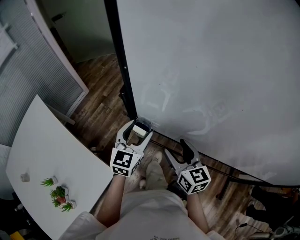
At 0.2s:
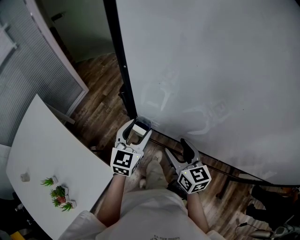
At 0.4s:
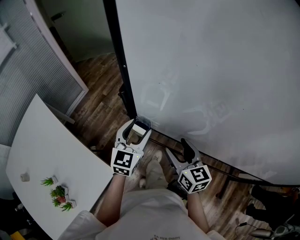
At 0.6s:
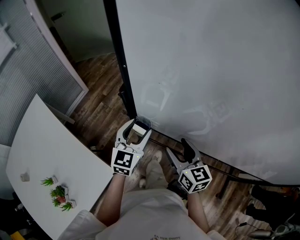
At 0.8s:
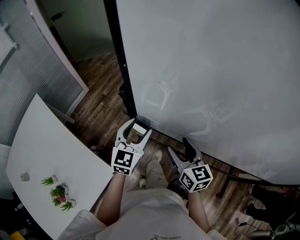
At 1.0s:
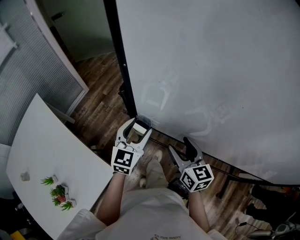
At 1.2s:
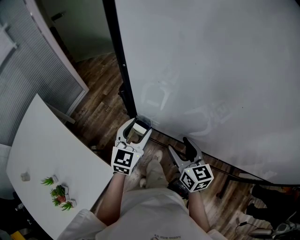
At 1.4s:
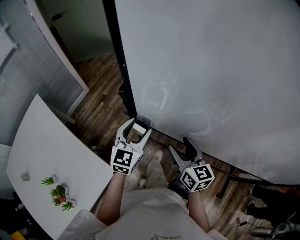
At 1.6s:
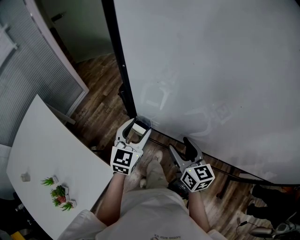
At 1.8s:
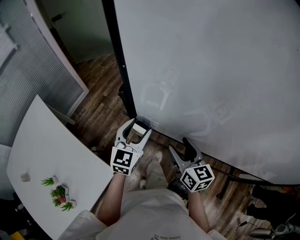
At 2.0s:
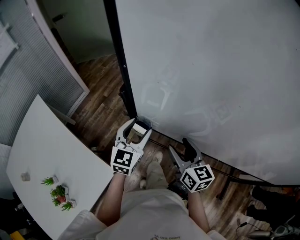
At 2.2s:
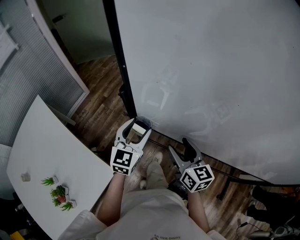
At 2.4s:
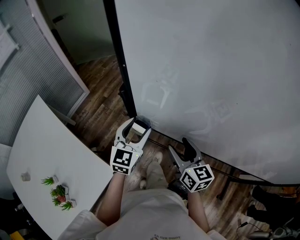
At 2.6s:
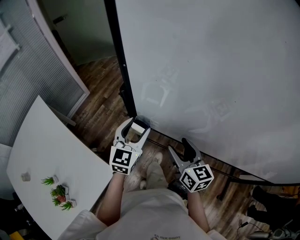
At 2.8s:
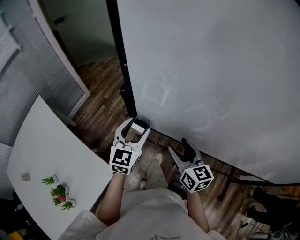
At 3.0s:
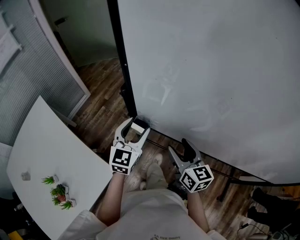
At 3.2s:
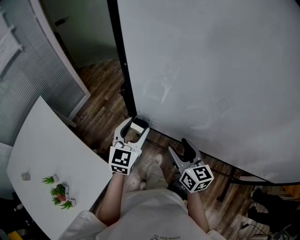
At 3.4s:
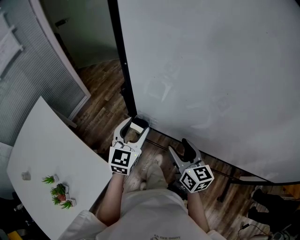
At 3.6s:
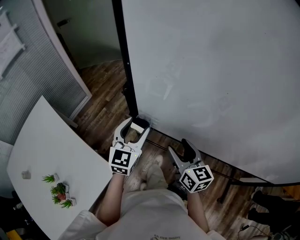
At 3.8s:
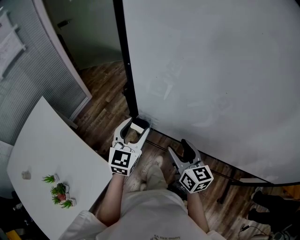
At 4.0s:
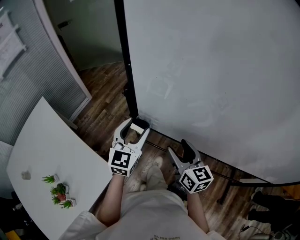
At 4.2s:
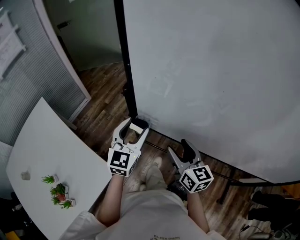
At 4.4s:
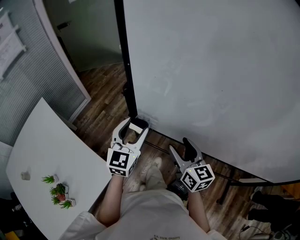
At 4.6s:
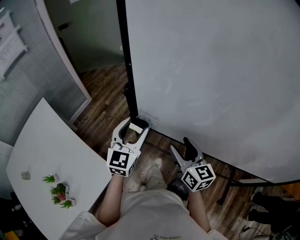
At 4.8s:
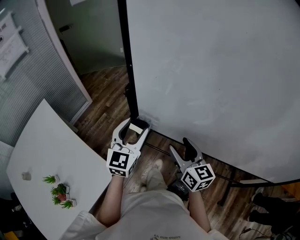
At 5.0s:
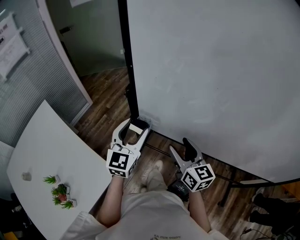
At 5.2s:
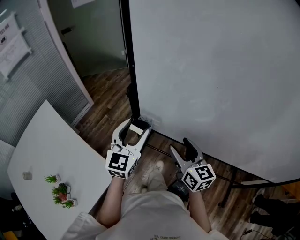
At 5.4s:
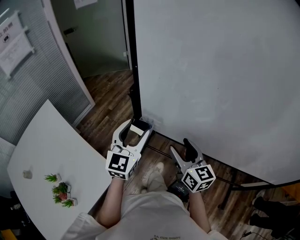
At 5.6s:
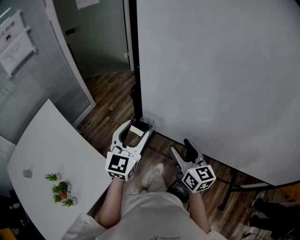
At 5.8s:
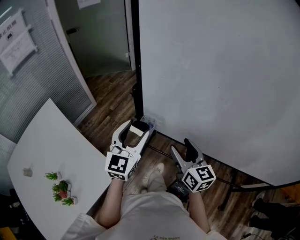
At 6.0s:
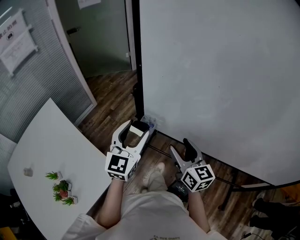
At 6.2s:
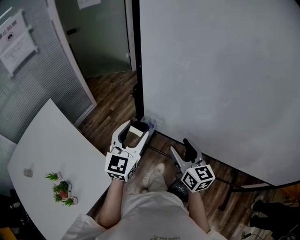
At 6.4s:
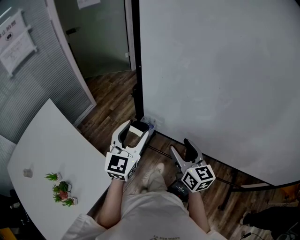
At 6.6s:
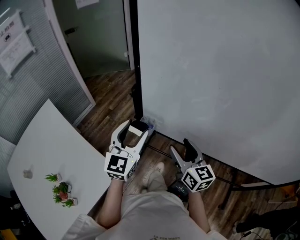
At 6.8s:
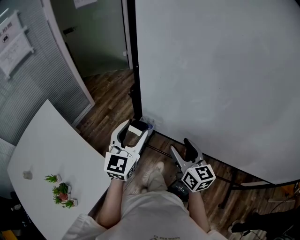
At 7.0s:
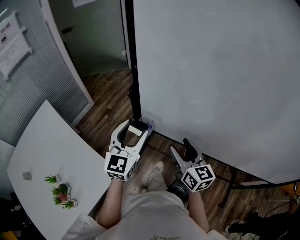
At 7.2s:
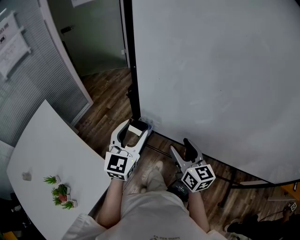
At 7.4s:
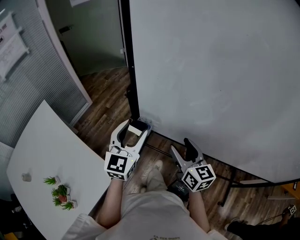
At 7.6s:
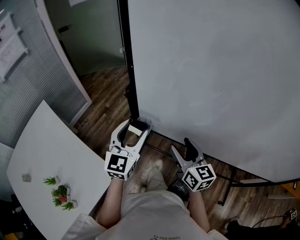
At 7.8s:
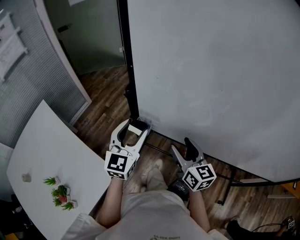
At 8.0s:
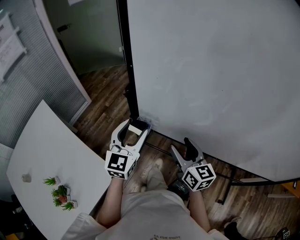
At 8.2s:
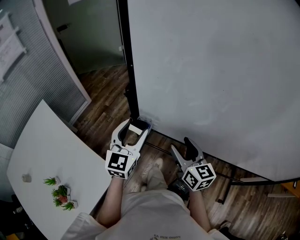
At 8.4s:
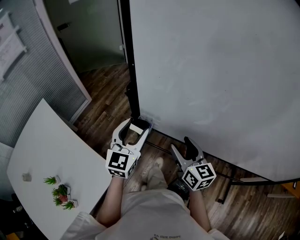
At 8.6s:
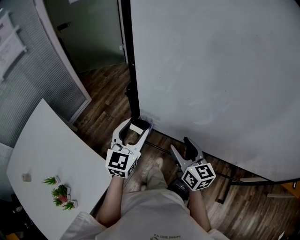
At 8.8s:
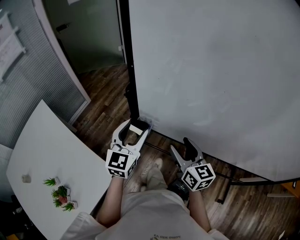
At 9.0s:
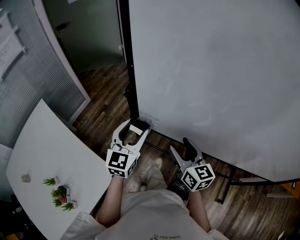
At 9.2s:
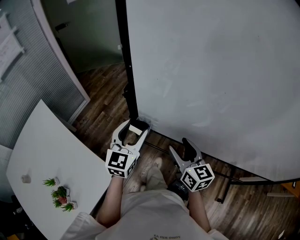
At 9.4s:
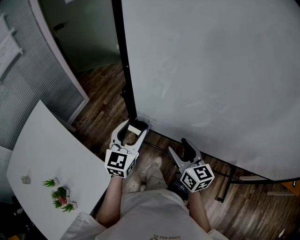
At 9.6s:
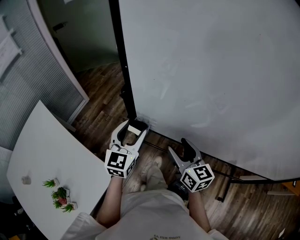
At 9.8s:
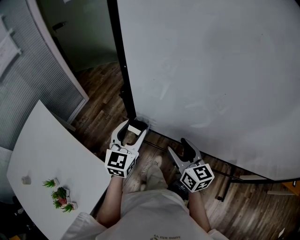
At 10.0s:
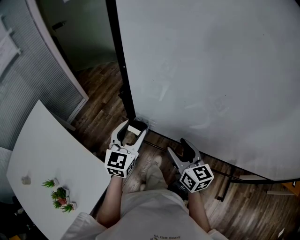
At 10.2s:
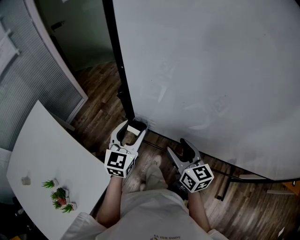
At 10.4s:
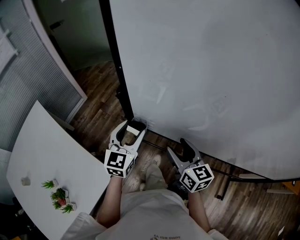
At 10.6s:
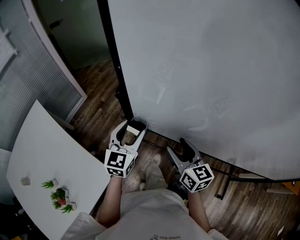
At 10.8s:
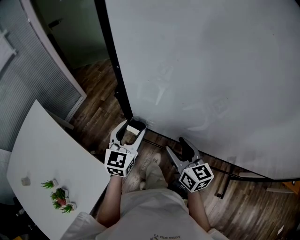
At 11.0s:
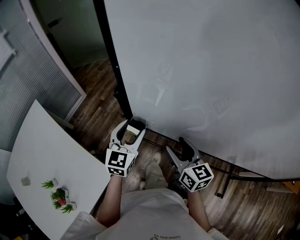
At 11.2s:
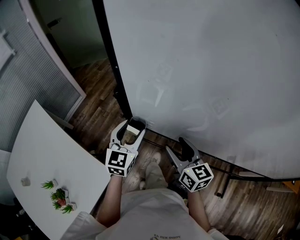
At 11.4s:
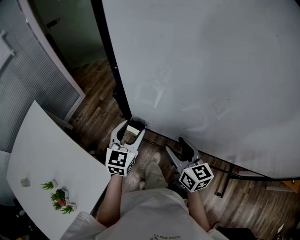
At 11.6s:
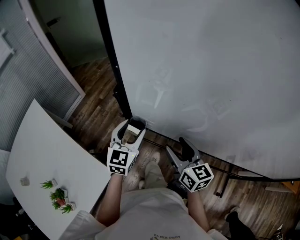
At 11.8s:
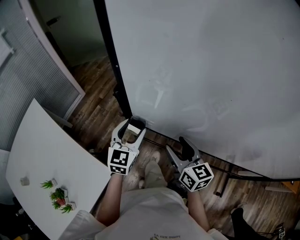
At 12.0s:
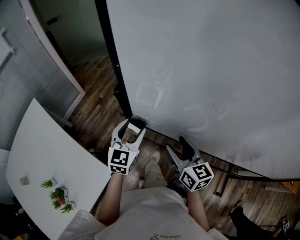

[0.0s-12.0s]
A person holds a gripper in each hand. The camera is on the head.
0.0s to 3.0s: There are only small adjustments of the grippers.
3.0s to 4.4s: The grippers make only small movements.
4.4s to 6.0s: The left gripper shifts by about 5 cm.
6.0s to 7.6s: The grippers stay close to where they were, moving slightly.
7.6s to 9.0s: The grippers move only a little.
9.0s to 10.4s: There are only small adjustments of the grippers.
10.4s to 12.0s: The grippers make only small movements.

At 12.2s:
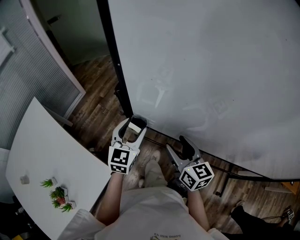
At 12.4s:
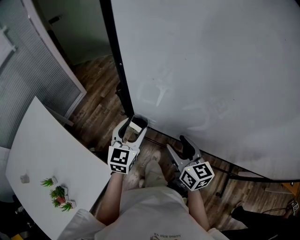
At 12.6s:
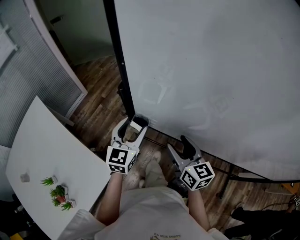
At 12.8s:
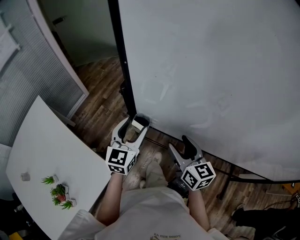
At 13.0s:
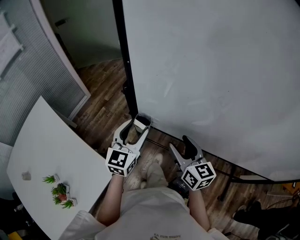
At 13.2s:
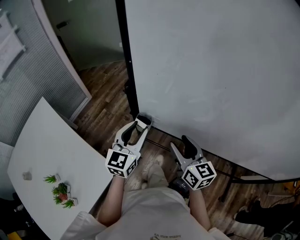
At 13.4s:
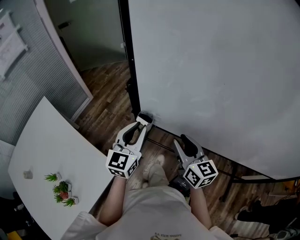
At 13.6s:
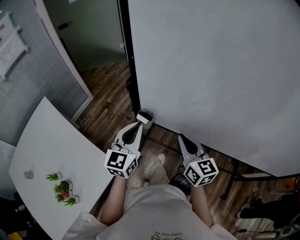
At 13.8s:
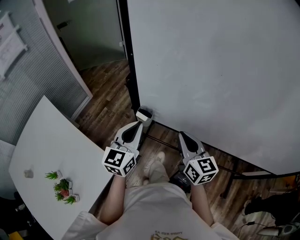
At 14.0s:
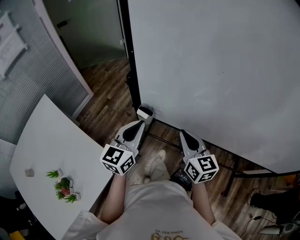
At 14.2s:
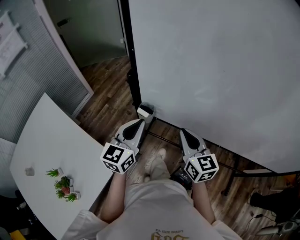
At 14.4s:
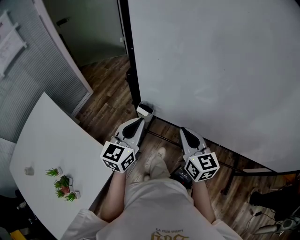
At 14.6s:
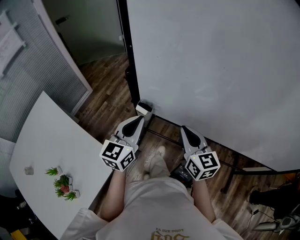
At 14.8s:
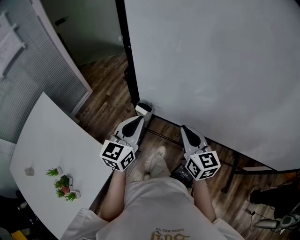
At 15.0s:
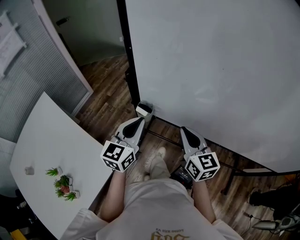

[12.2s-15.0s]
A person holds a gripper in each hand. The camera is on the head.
12.2s to 13.6s: The left gripper is displaced upward and backward by some 10 cm, and closes up, while the right gripper shifts by some 5 cm, and closes its fingers.
13.6s to 15.0s: There are only small adjustments of the grippers.

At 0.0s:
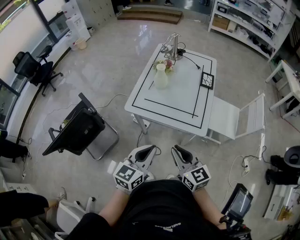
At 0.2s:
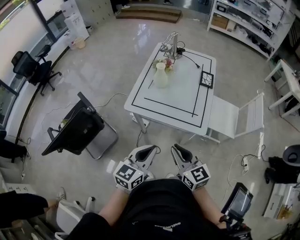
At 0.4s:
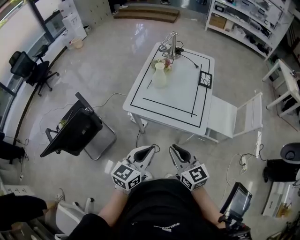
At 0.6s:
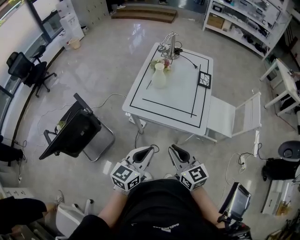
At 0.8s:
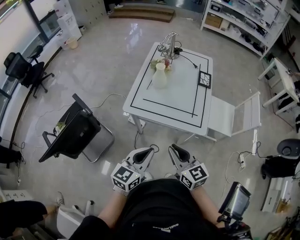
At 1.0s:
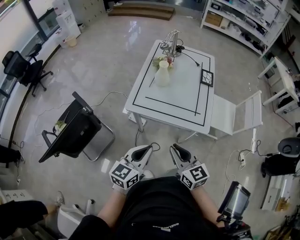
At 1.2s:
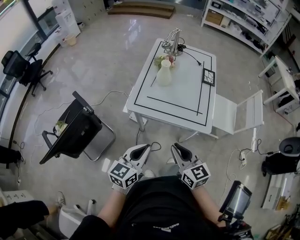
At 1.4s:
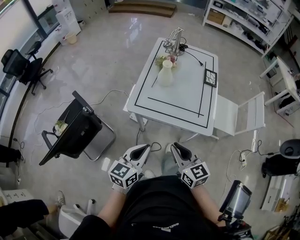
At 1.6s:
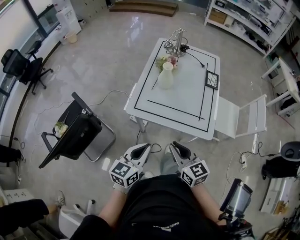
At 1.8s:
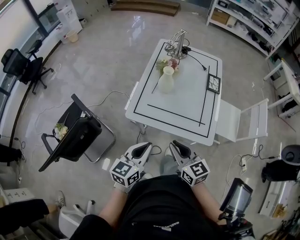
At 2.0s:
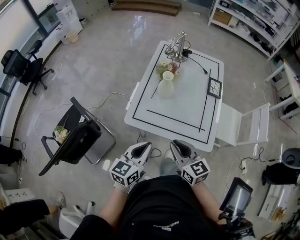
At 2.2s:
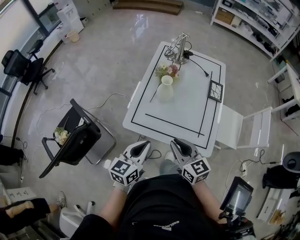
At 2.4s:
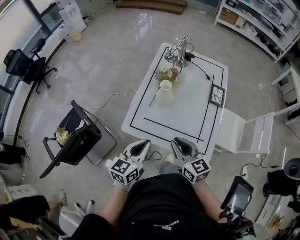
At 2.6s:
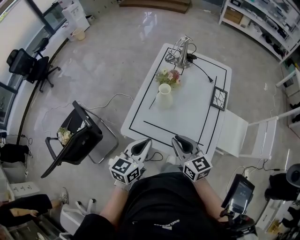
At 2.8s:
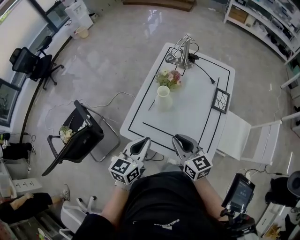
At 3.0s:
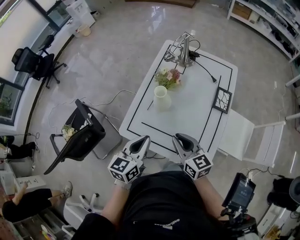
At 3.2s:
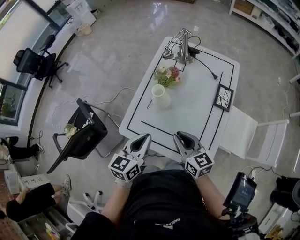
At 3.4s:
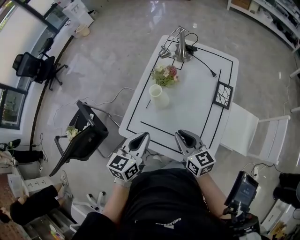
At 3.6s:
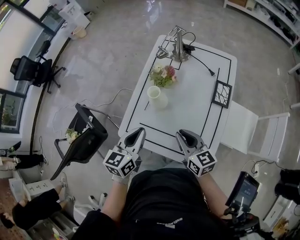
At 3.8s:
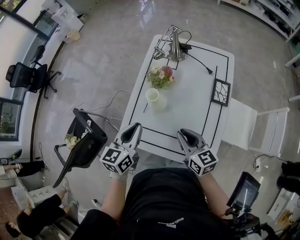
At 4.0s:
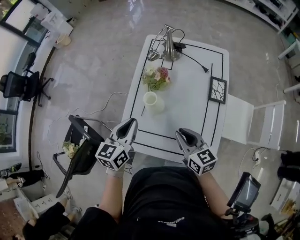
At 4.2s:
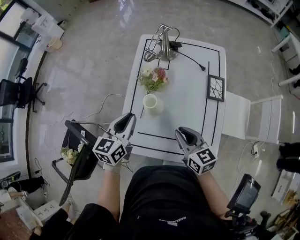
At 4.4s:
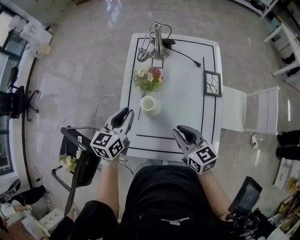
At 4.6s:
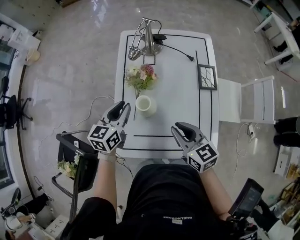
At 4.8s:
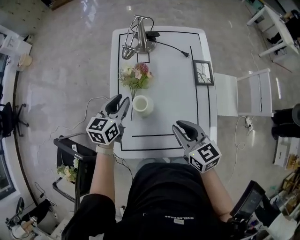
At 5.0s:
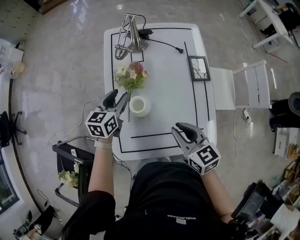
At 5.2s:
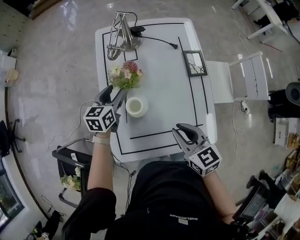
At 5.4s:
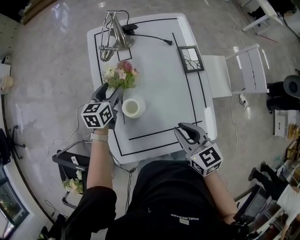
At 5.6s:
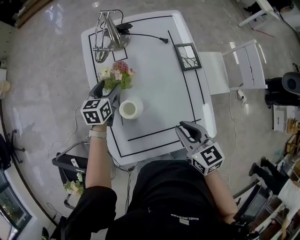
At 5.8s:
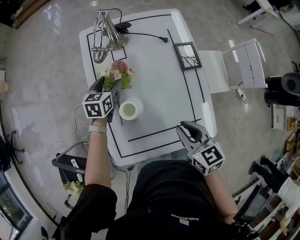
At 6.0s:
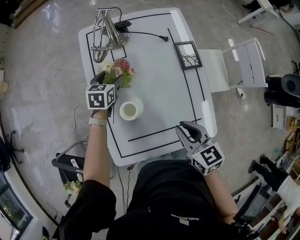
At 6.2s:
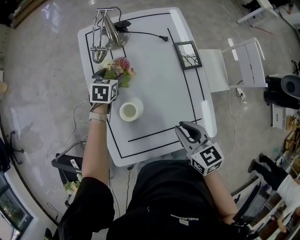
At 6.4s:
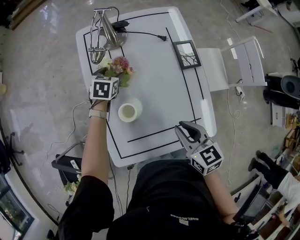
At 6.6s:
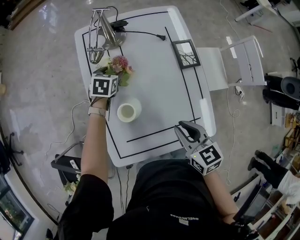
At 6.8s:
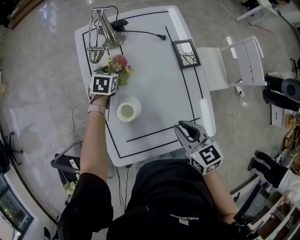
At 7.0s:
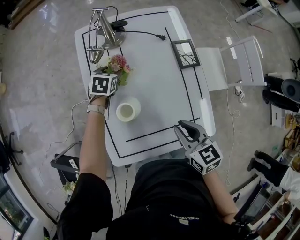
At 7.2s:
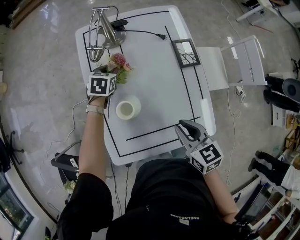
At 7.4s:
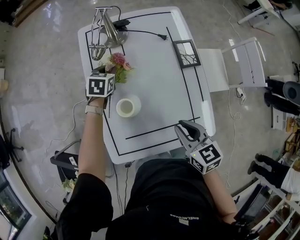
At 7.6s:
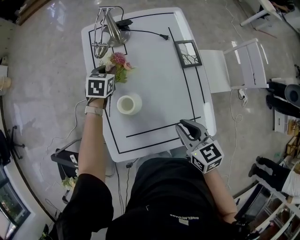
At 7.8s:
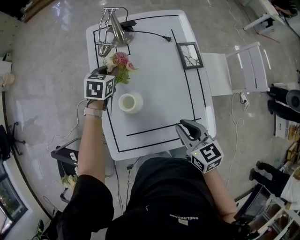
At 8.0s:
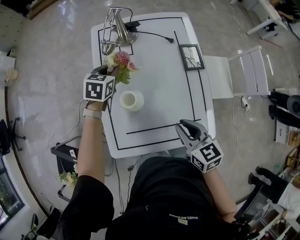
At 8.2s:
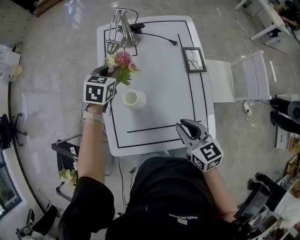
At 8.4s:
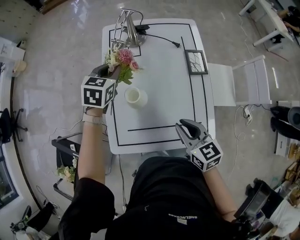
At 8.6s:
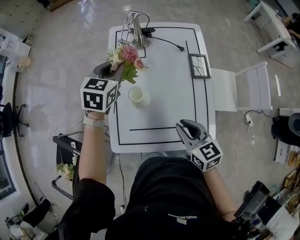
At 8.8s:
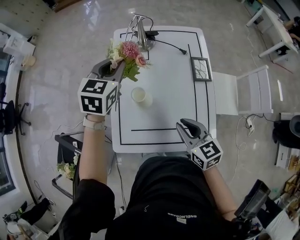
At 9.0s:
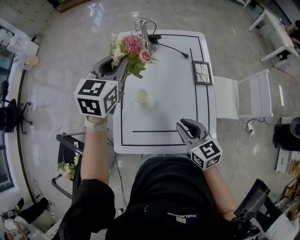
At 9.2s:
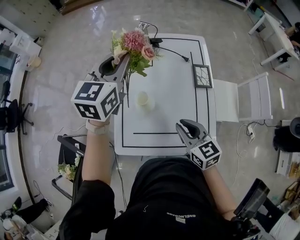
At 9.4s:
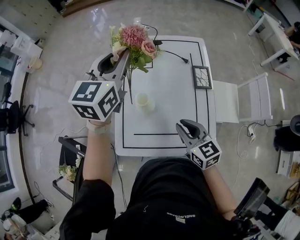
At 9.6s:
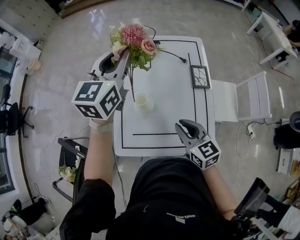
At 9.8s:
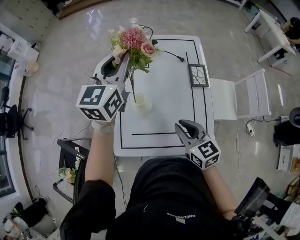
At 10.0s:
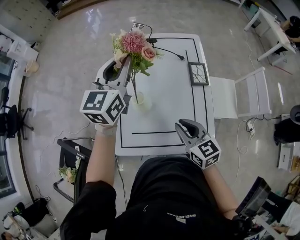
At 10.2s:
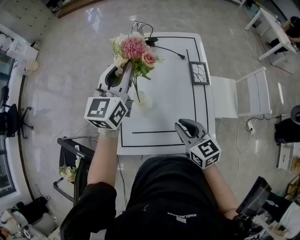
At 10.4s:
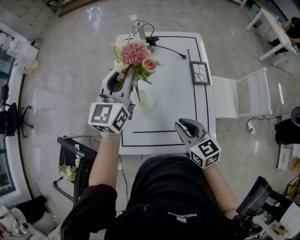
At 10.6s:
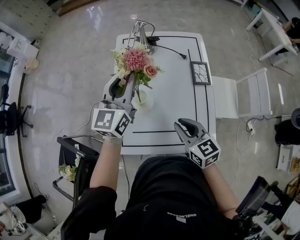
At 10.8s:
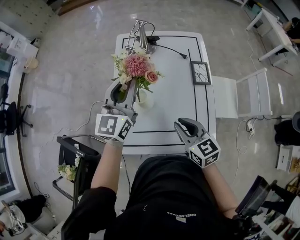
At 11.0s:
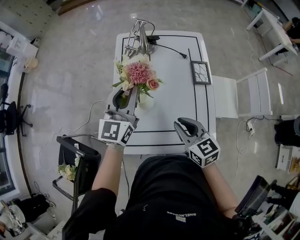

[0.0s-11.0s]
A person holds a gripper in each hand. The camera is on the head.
0.0s to 1.6s: The left gripper is displaced to the left, forward and downward by about 10 cm. Meanwhile the right gripper travels to the left and forward by roughly 10 cm.
1.6s to 3.2s: Both grippers move forward and to the right, about 25 cm.
3.2s to 4.8s: The left gripper heads forward, covering approximately 25 cm, and swivels about 20 degrees. The right gripper moves forward, about 5 cm, and turns by about 20 degrees.
4.8s to 6.2s: The left gripper moves forward and downward, roughly 20 cm, changes its angle by roughly 30 degrees, and opens its fingers.
6.2s to 7.8s: The left gripper moves upward, approximately 5 cm, and closes its fingers.
7.8s to 9.4s: The right gripper goes about 5 cm upward. The left gripper shifts about 35 cm upward, and points its fingers about 40 degrees further upward.
9.4s to 11.0s: The left gripper is displaced downward and backward by some 15 cm.
